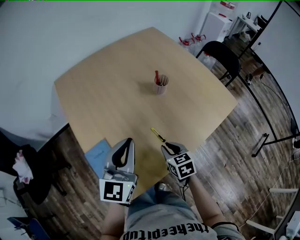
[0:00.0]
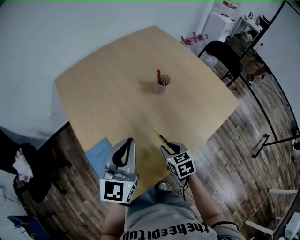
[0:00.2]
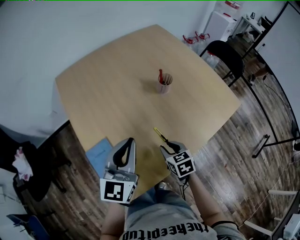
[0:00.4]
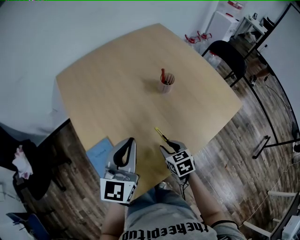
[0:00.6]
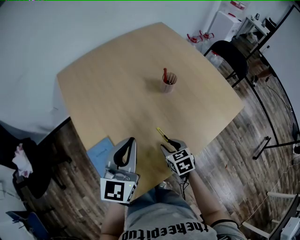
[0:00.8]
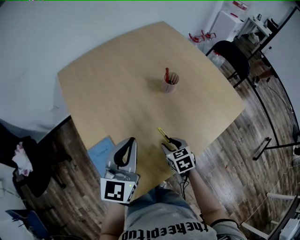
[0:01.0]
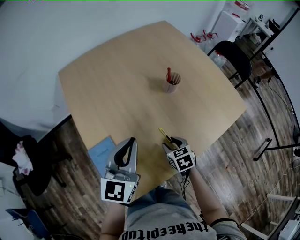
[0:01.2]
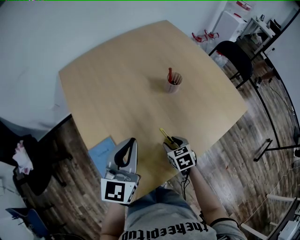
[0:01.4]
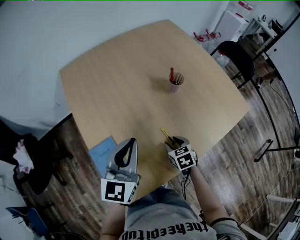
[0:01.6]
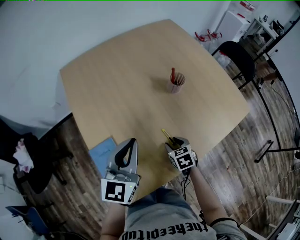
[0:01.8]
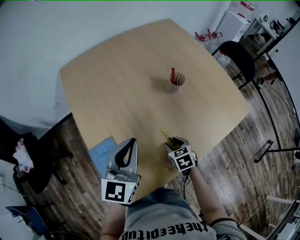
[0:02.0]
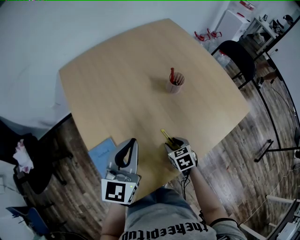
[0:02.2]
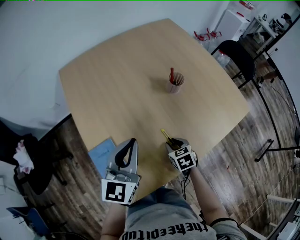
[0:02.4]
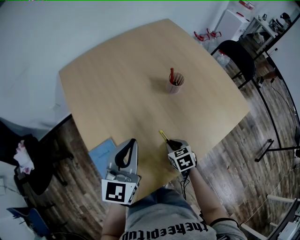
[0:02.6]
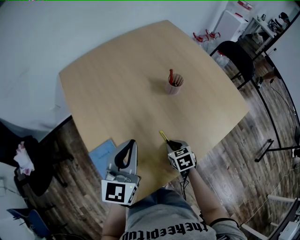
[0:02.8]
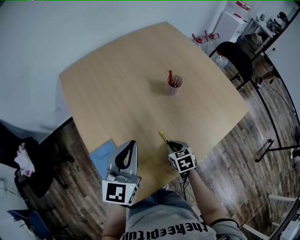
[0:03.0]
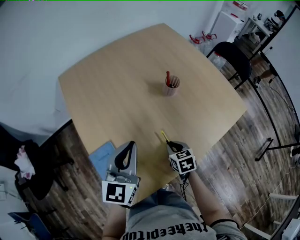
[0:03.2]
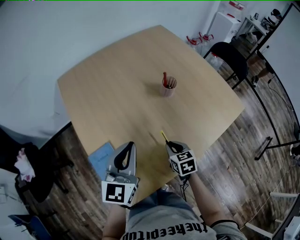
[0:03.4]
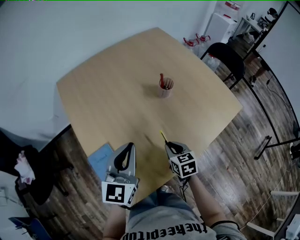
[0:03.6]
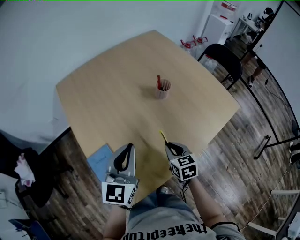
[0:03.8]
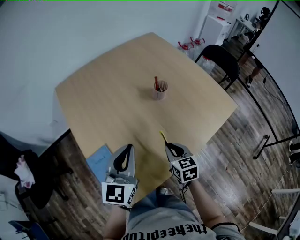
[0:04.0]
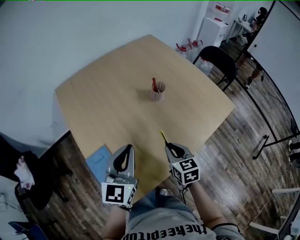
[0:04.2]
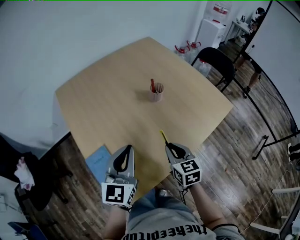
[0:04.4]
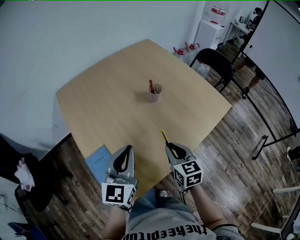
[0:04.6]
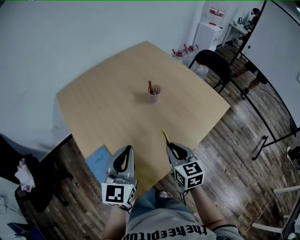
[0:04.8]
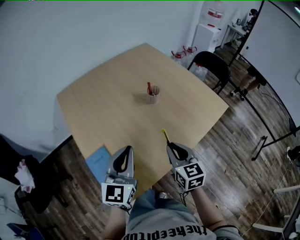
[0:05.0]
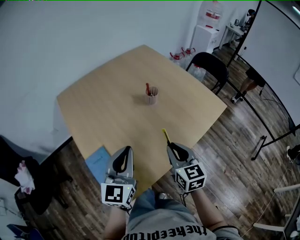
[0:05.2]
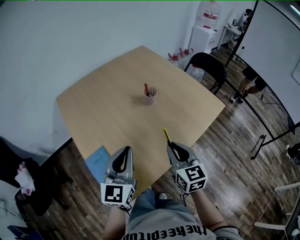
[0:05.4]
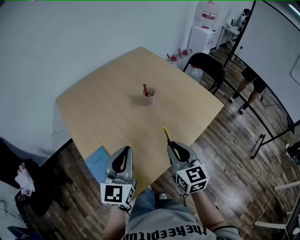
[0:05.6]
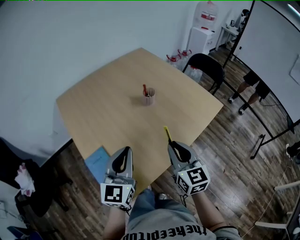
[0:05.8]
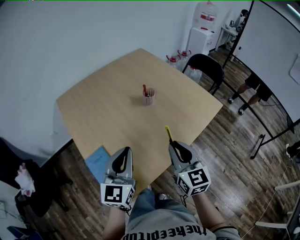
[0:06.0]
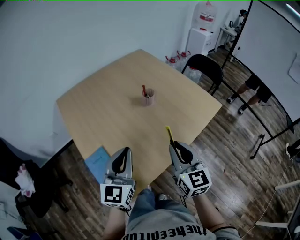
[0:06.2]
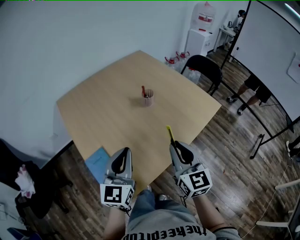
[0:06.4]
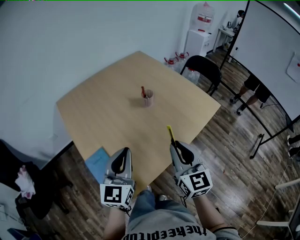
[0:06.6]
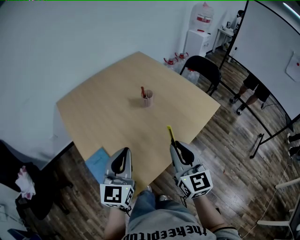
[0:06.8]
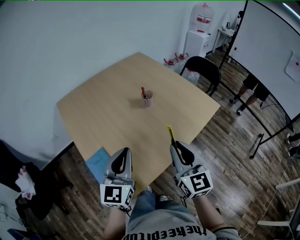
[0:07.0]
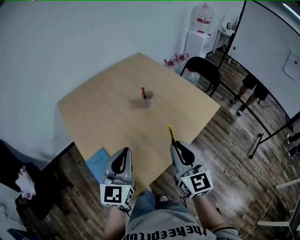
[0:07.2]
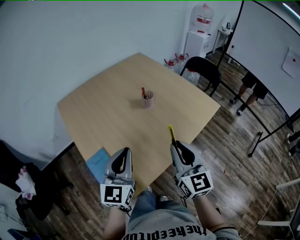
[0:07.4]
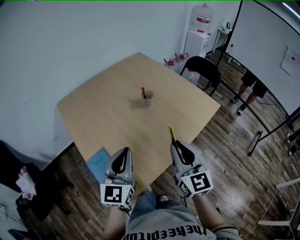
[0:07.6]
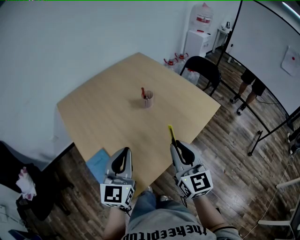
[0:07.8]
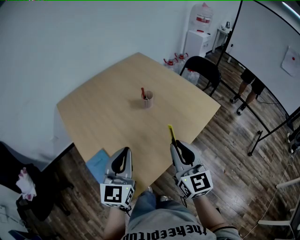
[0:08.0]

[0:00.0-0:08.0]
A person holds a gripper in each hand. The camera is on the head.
0.0 to 1.6 s: The right gripper travels downward by some 5 cm, and opens up.
1.6 to 3.2 s: The right gripper closes.
3.2 to 4.8 s: The right gripper travels upward by roughly 15 cm, and turns by approximately 30 degrees. The left gripper shifts by roughly 5 cm.
4.8 to 6.4 s: The right gripper is displaced upward and backward by approximately 10 cm, and rotates about 20 degrees.
6.4 to 8.0 s: The grippers move only a little.

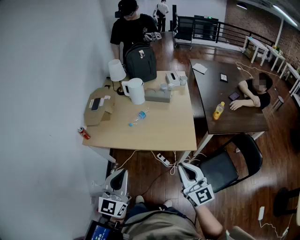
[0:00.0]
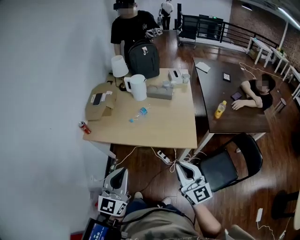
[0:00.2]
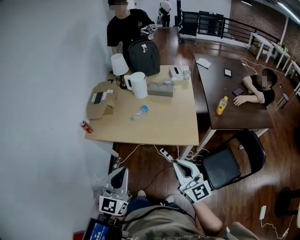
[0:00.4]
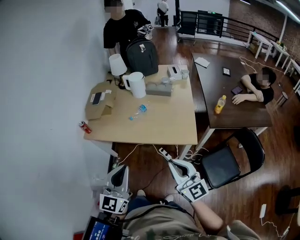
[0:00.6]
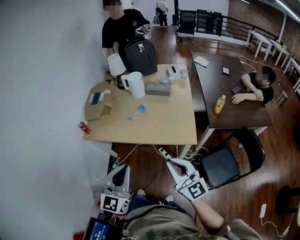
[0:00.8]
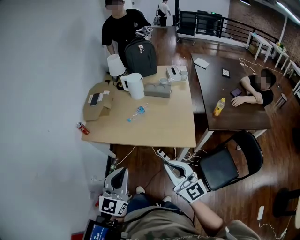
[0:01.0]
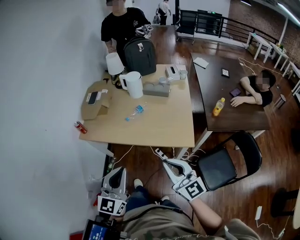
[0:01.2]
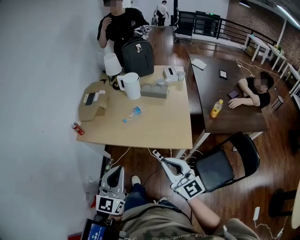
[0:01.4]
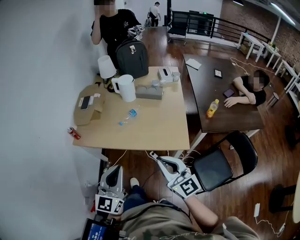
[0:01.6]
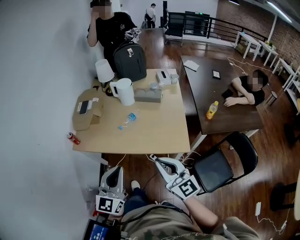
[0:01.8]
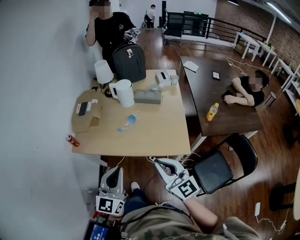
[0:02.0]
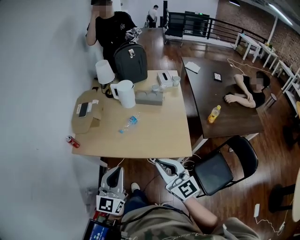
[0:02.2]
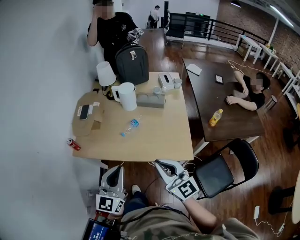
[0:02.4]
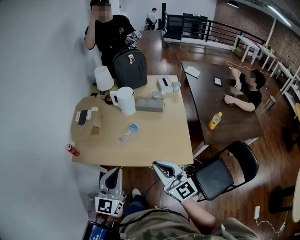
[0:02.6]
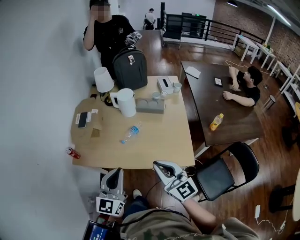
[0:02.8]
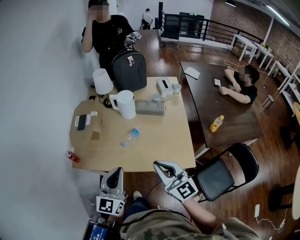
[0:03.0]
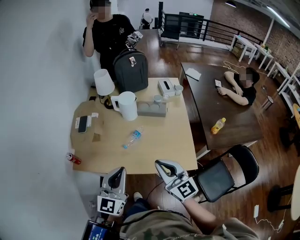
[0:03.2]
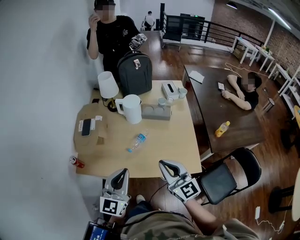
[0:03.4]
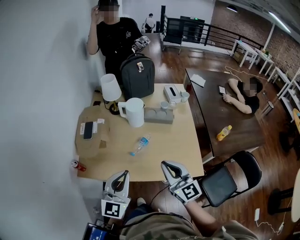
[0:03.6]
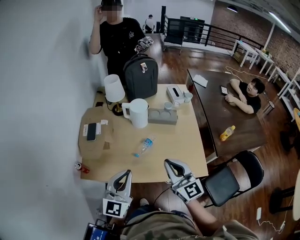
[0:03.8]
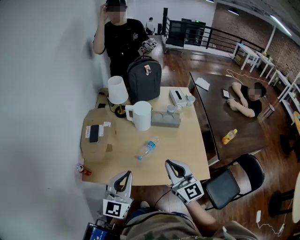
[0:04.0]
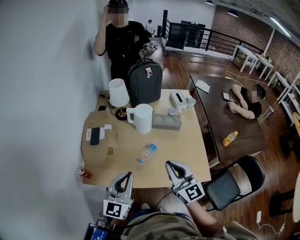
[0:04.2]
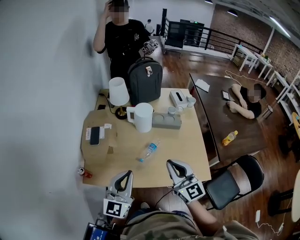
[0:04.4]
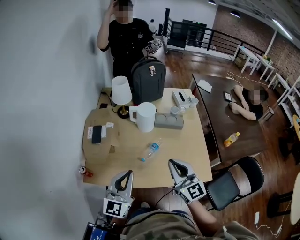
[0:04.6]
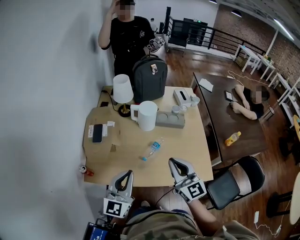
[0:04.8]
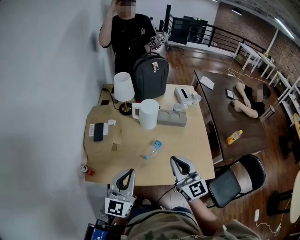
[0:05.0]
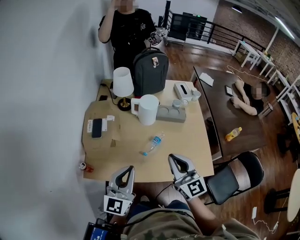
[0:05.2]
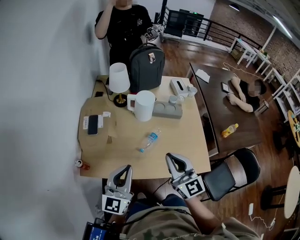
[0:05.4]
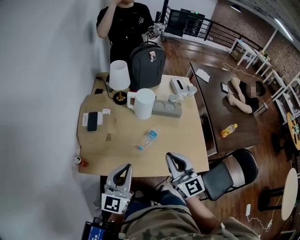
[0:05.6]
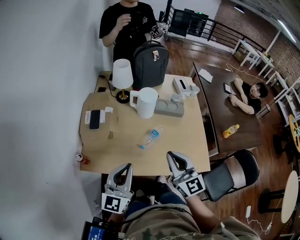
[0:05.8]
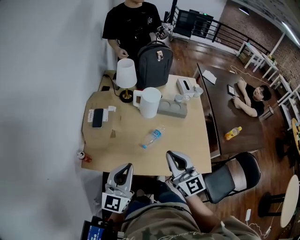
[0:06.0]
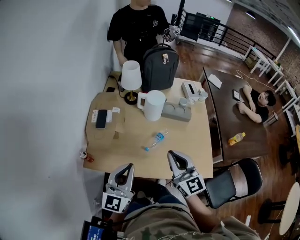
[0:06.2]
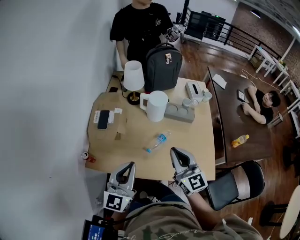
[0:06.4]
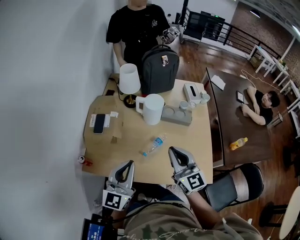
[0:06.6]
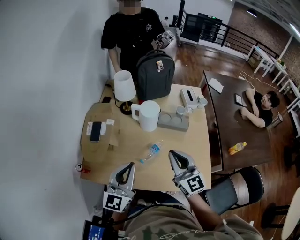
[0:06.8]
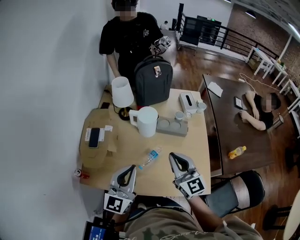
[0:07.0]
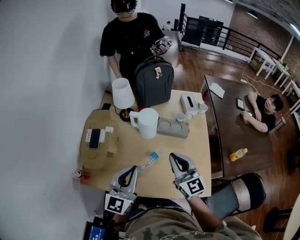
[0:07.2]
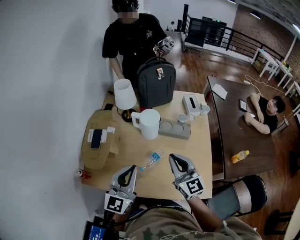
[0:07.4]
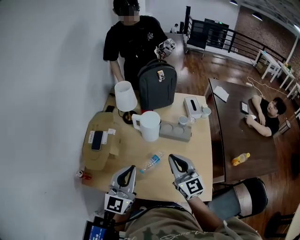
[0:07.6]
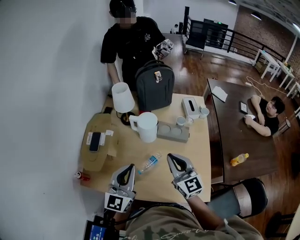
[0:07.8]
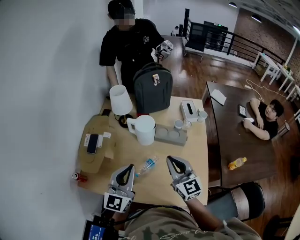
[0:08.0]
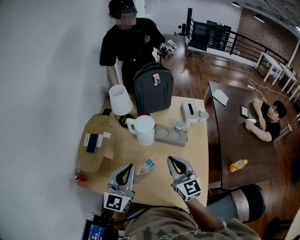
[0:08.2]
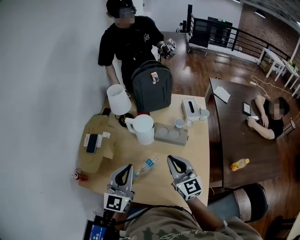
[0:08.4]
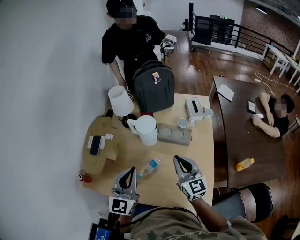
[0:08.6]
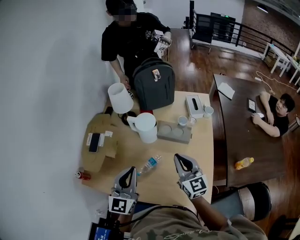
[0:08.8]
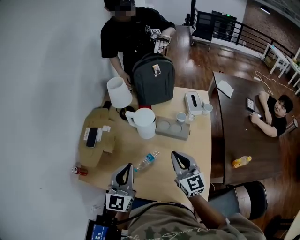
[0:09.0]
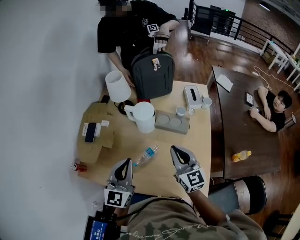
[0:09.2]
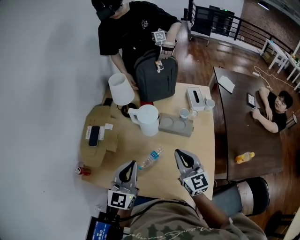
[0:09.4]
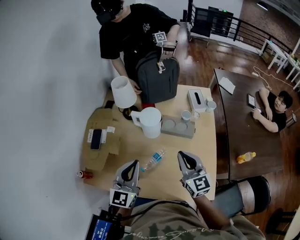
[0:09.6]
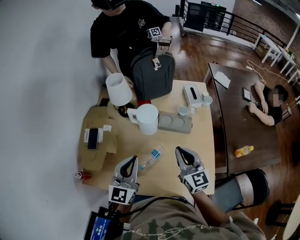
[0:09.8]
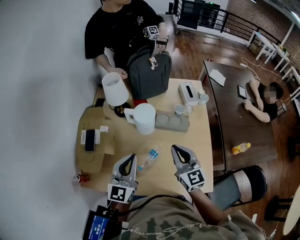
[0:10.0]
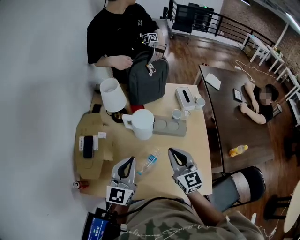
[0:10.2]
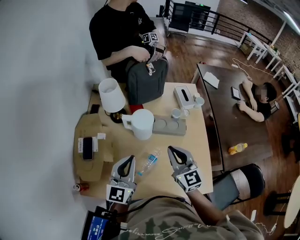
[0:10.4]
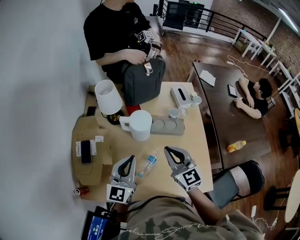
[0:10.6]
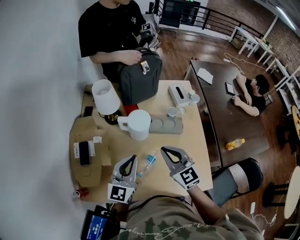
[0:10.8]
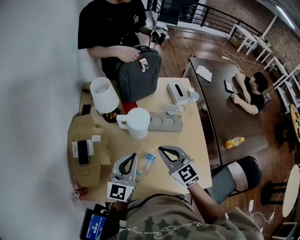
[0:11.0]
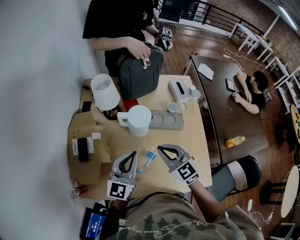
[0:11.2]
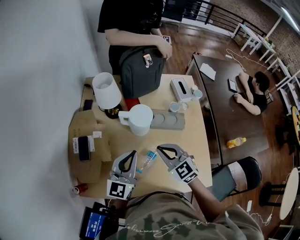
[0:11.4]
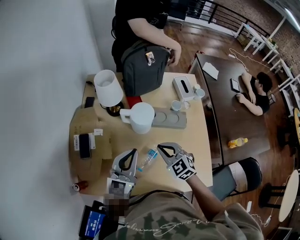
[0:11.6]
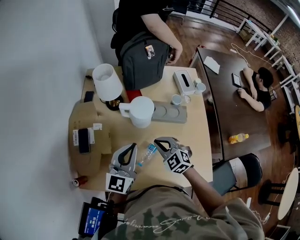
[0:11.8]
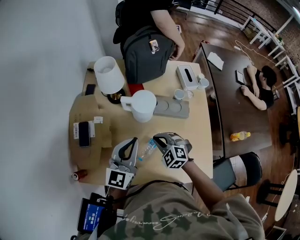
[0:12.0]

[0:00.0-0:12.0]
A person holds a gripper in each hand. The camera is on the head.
0.0 to 1.6 s: The left gripper ends up roughly 5 cm from where it was. The right gripper travels forward by roughly 5 cm.
1.6 to 3.0 s: Both grippers travel together forward, some 15 cm.
3.0 to 4.4 s: The left gripper is displaced to the left and forward by some 15 cm; the right gripper heads forward and to the left, covering approximately 15 cm.
4.4 to 6.0 s: The grippers make only small movements.
6.0 to 7.6 s: The two grippers go some 15 cm forward and to the right.
7.6 to 9.0 s: The left gripper moves roughly 5 cm. Meanwhile the right gripper heads to the right, covering about 5 cm.
9.0 to 10.4 s: The right gripper travels to the left by roughly 5 cm. The left gripper goes roughly 10 cm forward and to the left.
10.4 to 12.0 s: The right gripper heads downward, covering some 20 cm, and tilts its fingers roughly 40 degrees downward.

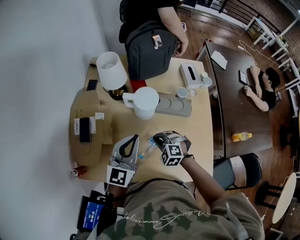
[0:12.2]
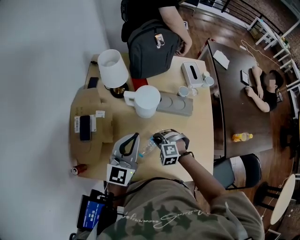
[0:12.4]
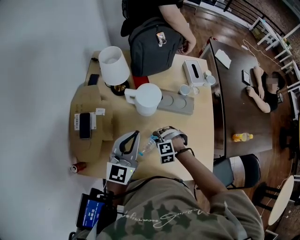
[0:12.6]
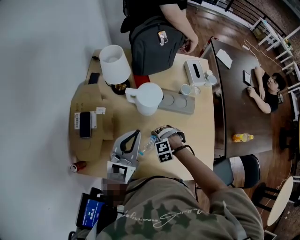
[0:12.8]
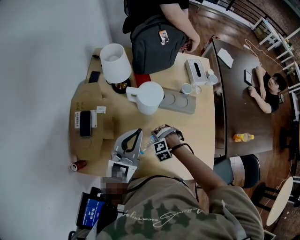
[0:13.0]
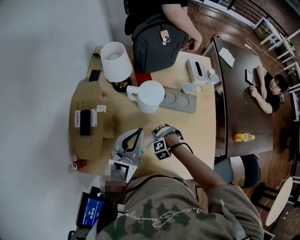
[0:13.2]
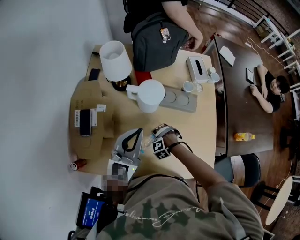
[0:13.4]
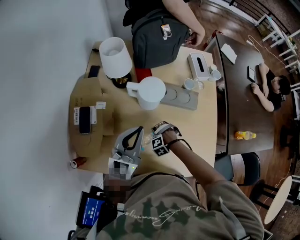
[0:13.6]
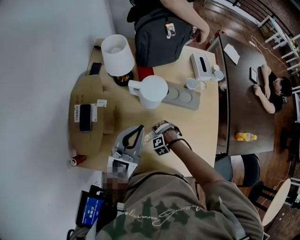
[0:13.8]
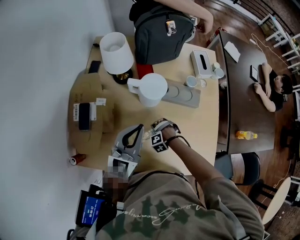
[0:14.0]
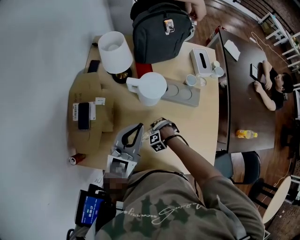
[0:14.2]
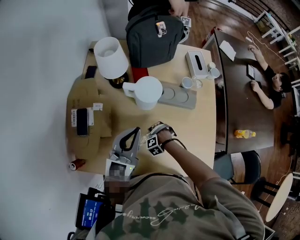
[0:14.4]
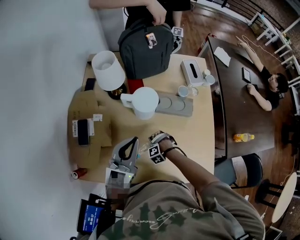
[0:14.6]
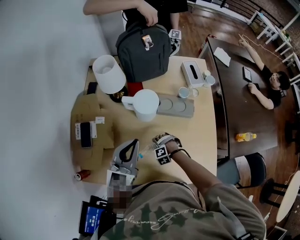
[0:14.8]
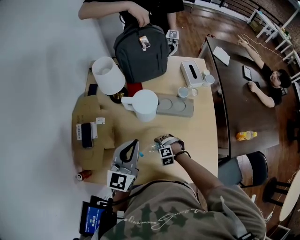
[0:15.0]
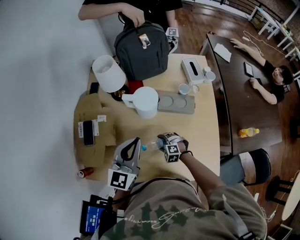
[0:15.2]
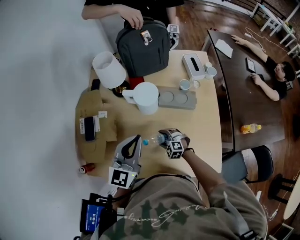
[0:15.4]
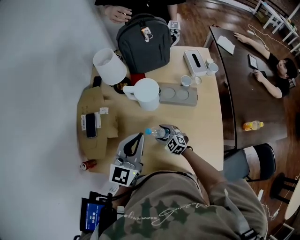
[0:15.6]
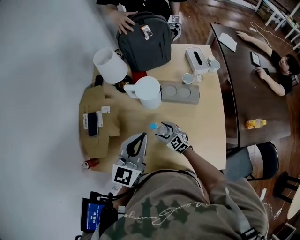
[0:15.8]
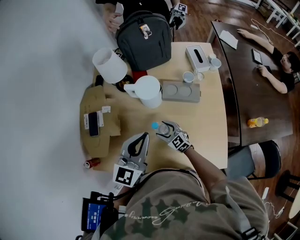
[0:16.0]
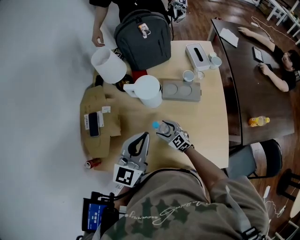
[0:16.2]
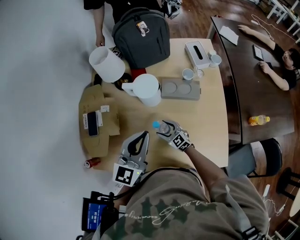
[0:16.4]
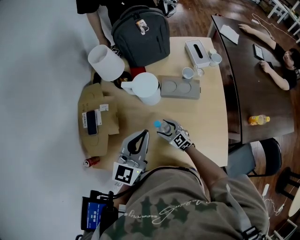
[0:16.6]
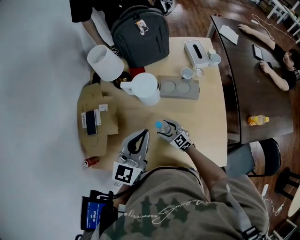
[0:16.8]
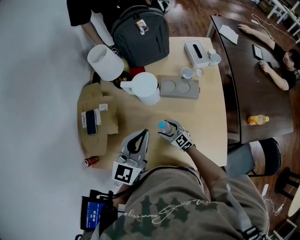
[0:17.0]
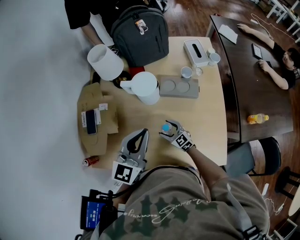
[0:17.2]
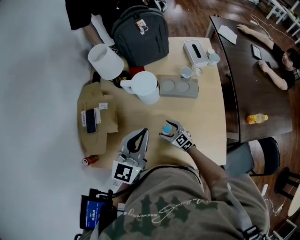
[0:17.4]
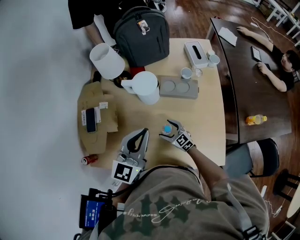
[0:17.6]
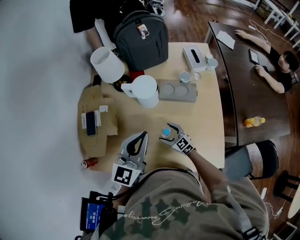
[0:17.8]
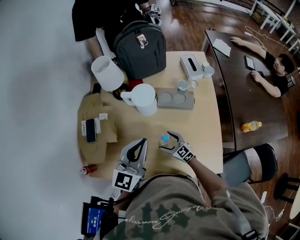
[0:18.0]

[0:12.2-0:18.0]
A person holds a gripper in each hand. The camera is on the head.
12.2 to 13.6 s: The right gripper is displaced downward by approximately 15 cm, turns by approximately 50 degrees, and opens its fingers.
13.6 to 15.0 s: The right gripper turns by approximately 30 degrees.
15.0 to 16.6 s: The left gripper moves some 5 cm, while the right gripper moves upward, approximately 10 cm, and tilts its fingers some 50 degrees upward.
16.6 to 18.0 s: The grippers move only a little.
